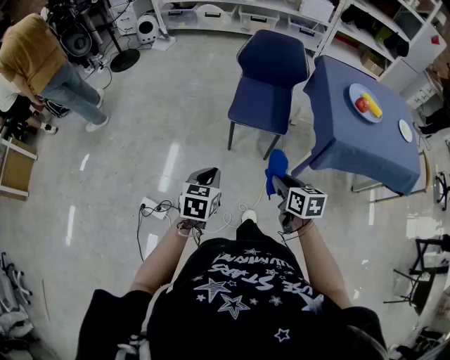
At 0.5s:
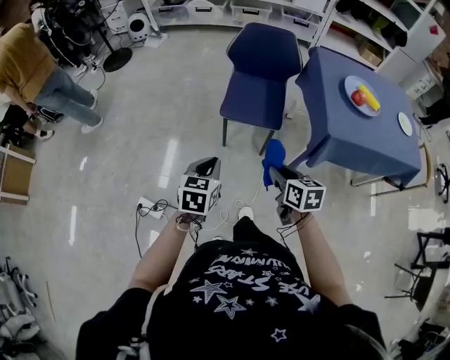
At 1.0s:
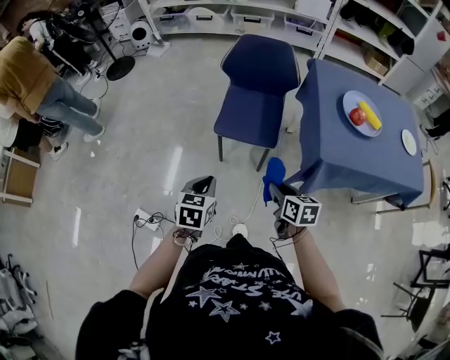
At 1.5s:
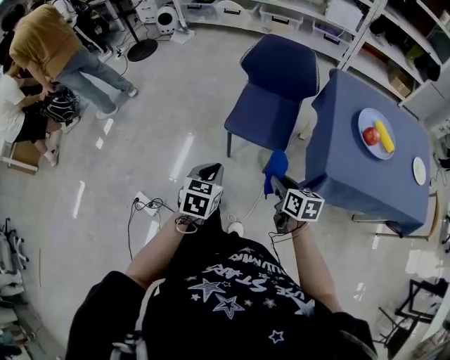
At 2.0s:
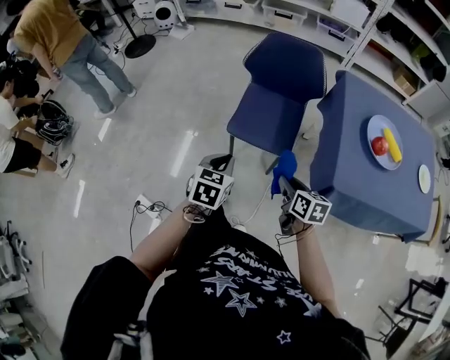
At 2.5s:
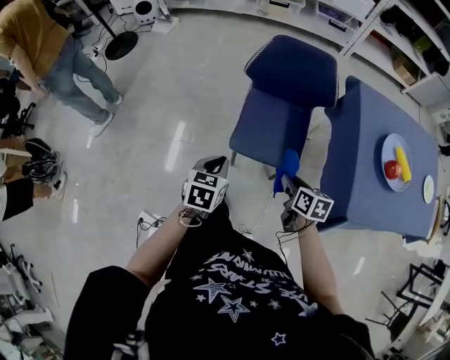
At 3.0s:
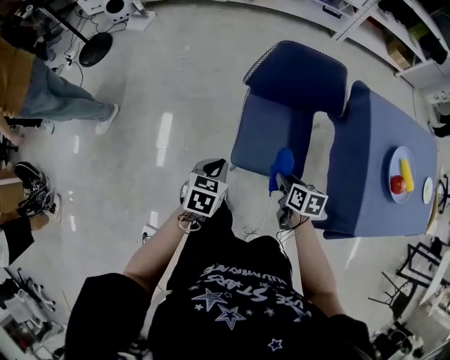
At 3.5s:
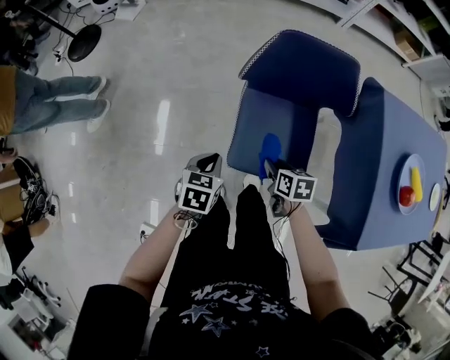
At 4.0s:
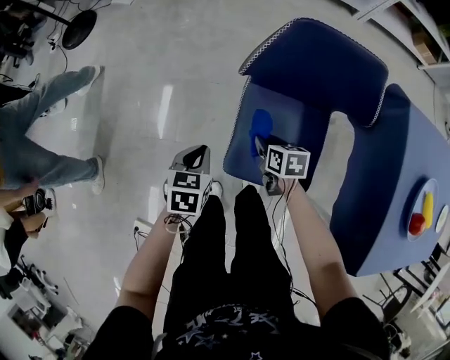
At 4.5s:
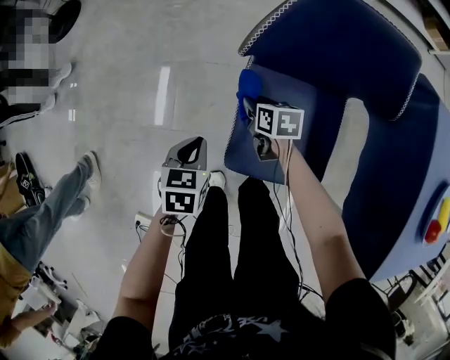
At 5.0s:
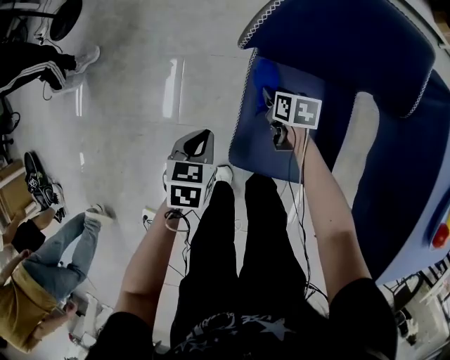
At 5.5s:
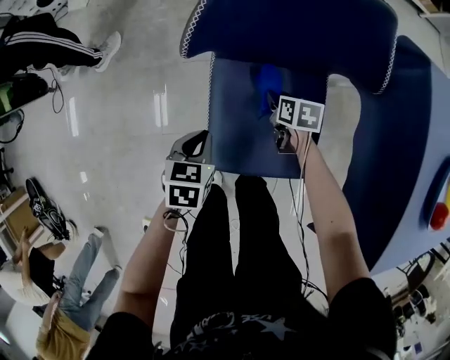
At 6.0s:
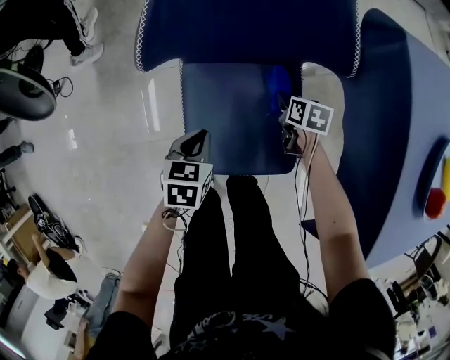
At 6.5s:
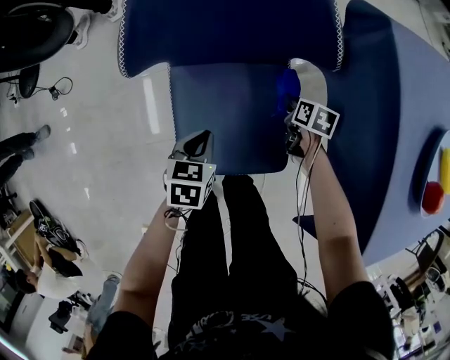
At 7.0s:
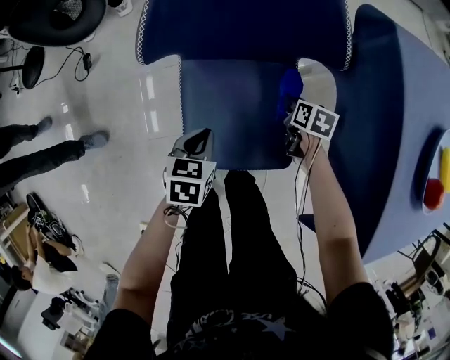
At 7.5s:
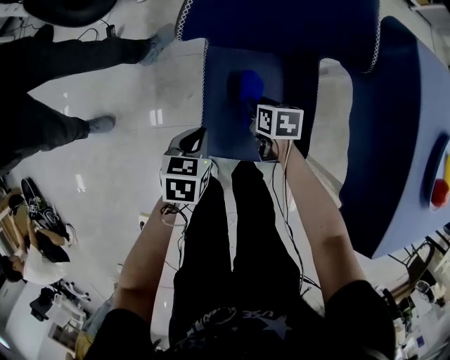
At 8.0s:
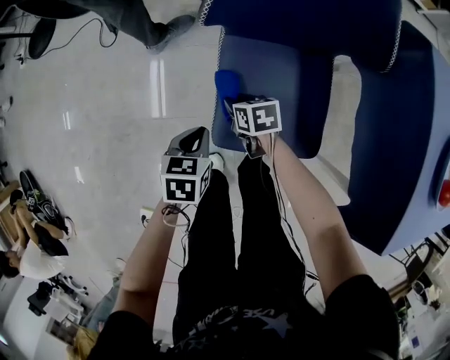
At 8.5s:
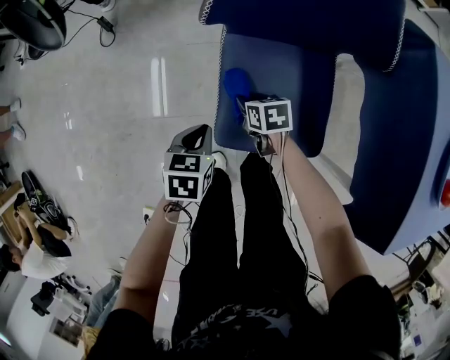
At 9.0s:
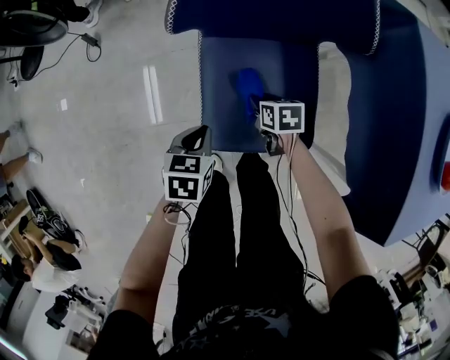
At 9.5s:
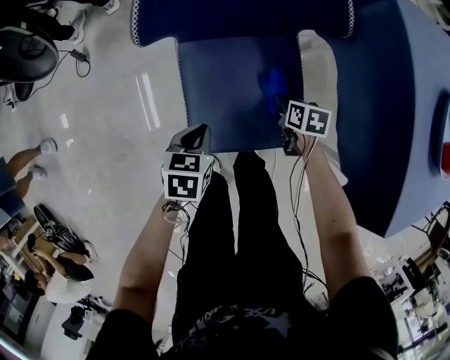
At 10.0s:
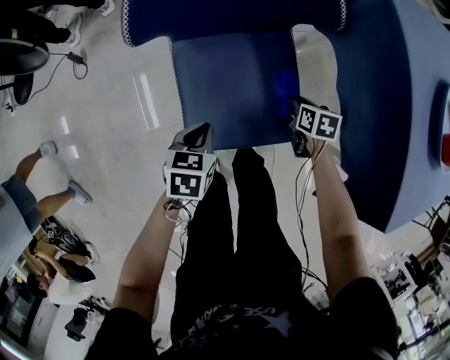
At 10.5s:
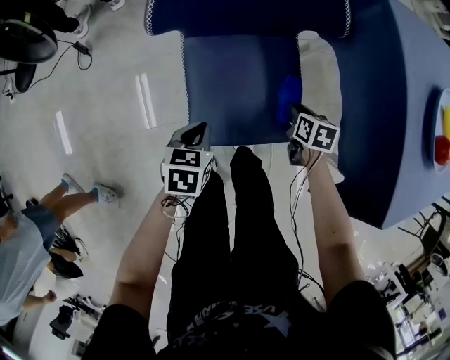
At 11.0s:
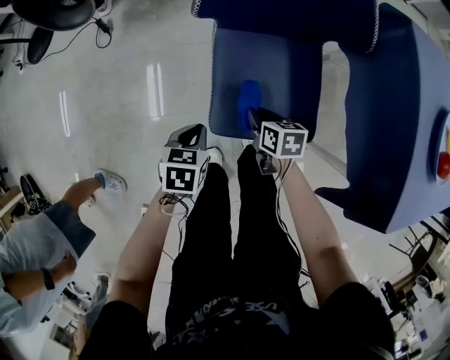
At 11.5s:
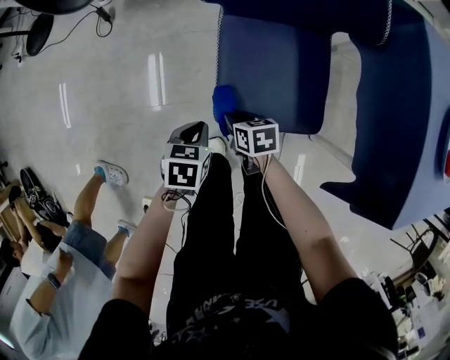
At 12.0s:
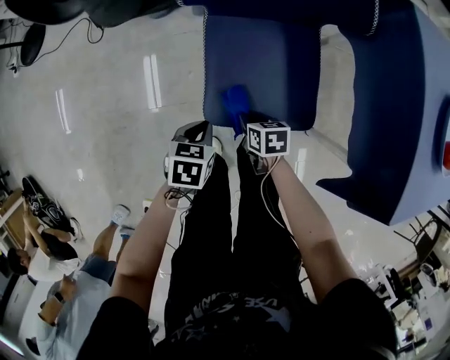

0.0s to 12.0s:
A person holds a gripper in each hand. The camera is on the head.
0.0s to 2.0s: The two grippers go about 25 cm forward and to the right.
2.0s to 4.0s: The two grippers go some 40 cm forward and downward.
4.0s to 6.0s: The grippers both shift to the right and downward by approximately 20 cm. The right gripper changes its angle by roughly 20 degrees.
6.0s to 8.0s: The right gripper heads to the left, covering approximately 25 cm, and changes its angle by about 30 degrees, while the left gripper heads to the left and backward, covering some 15 cm.
8.0s to 10.0s: The left gripper moves some 10 cm. Meanwhile the right gripper moves some 30 cm, and swivels some 30 degrees.
10.0s to 12.0s: The left gripper heads to the left and backward, covering about 10 cm; the right gripper shifts roughly 25 cm to the left and backward, and rotates about 20 degrees.

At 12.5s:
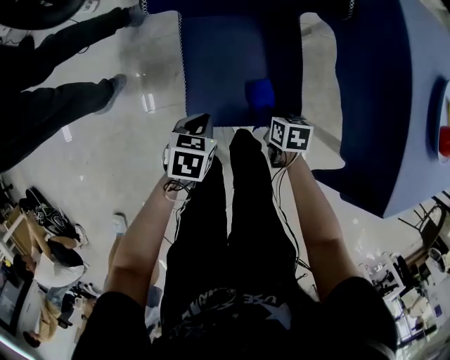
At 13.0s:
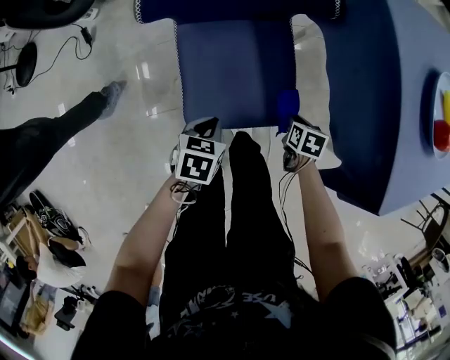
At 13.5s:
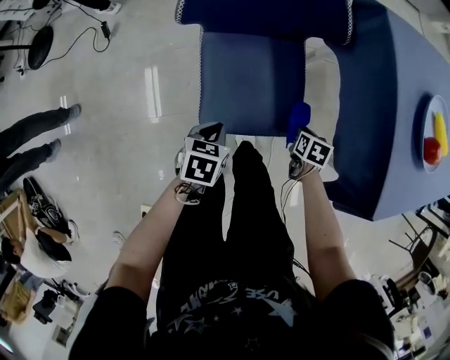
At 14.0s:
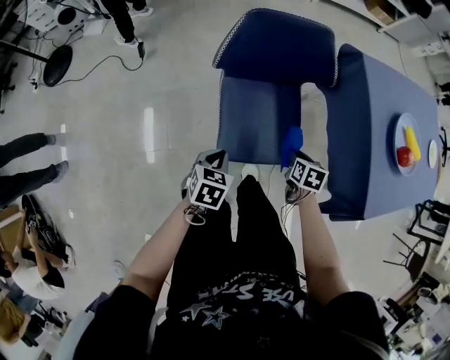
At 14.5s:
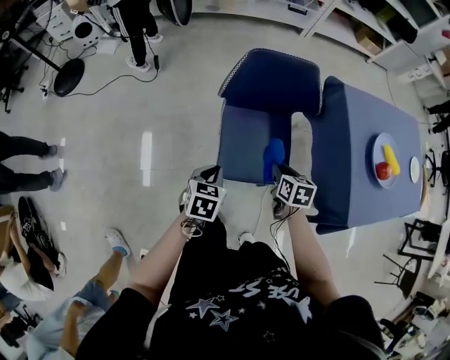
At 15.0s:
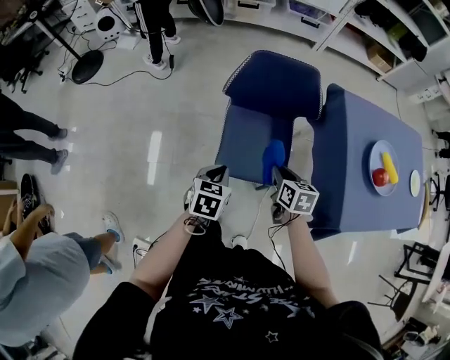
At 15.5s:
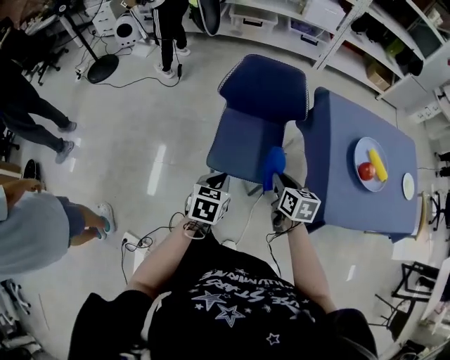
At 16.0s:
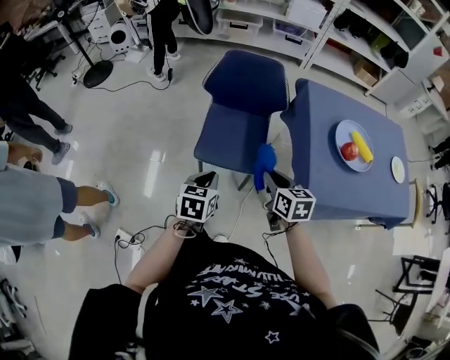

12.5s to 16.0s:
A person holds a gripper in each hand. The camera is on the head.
12.5s to 14.5s: Both grippers travel together upward, roughly 25 cm.
14.5s to 16.0s: The two grippers go about 25 cm backward, to the right and upward. The right gripper turns by approximately 30 degrees.

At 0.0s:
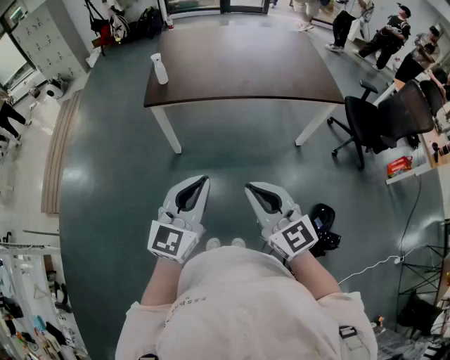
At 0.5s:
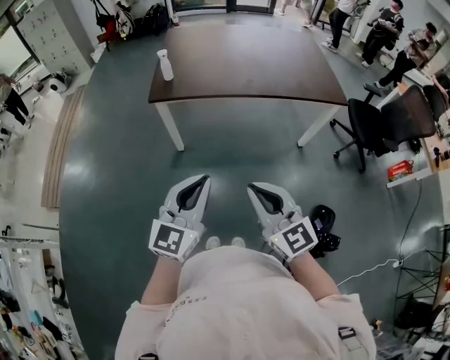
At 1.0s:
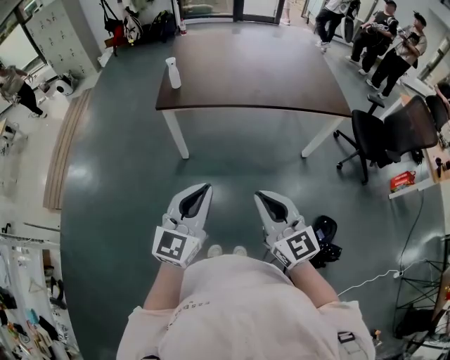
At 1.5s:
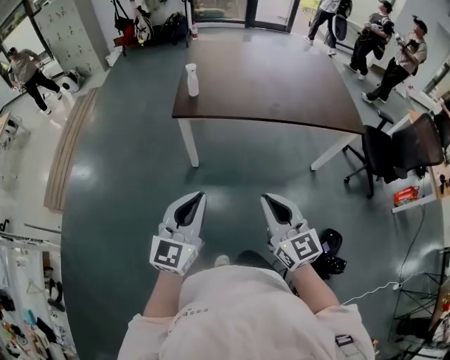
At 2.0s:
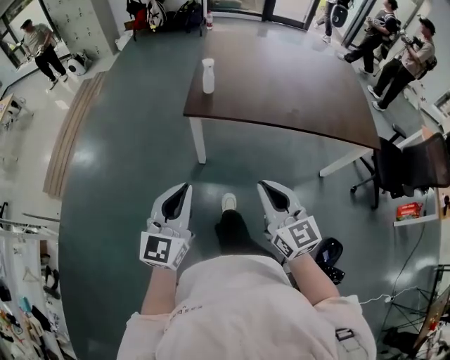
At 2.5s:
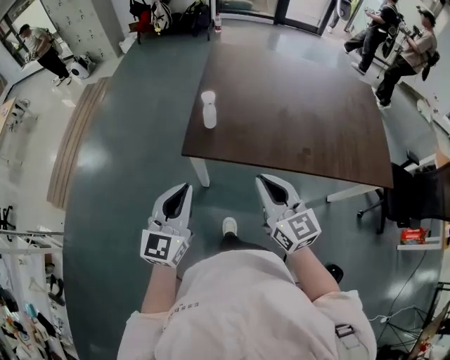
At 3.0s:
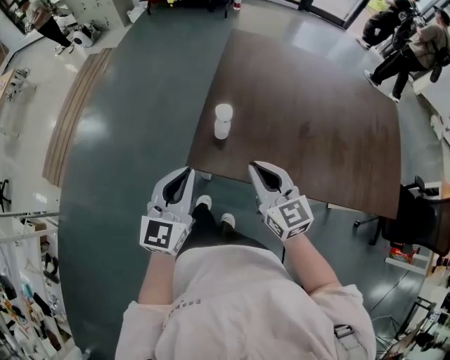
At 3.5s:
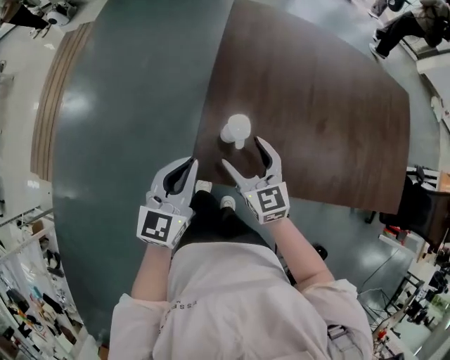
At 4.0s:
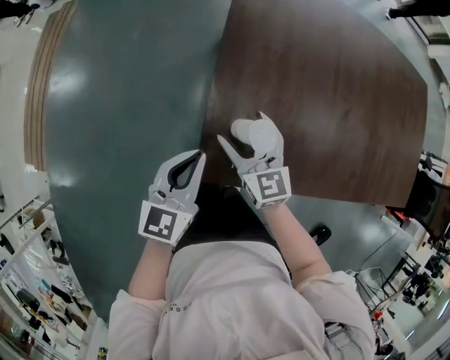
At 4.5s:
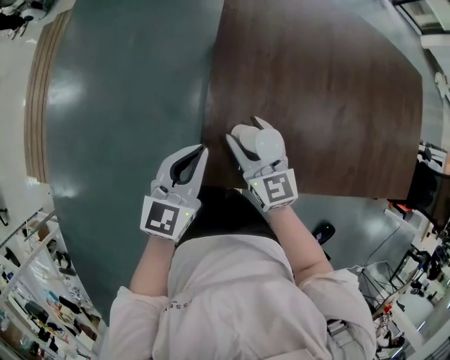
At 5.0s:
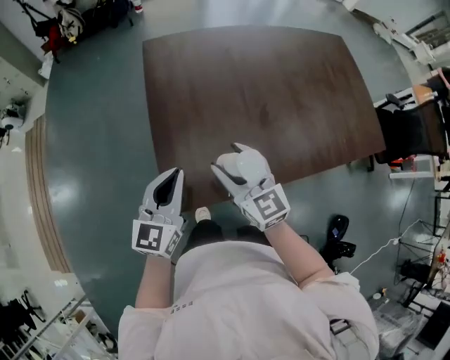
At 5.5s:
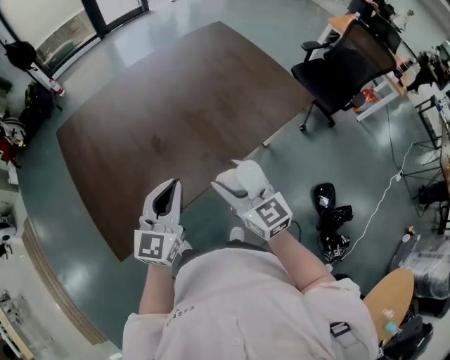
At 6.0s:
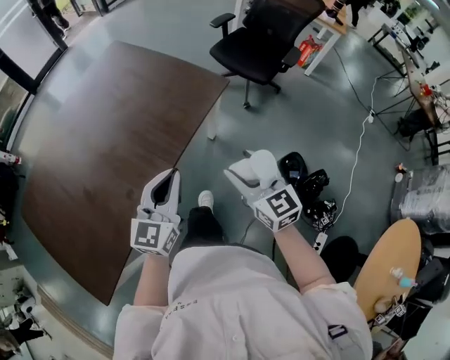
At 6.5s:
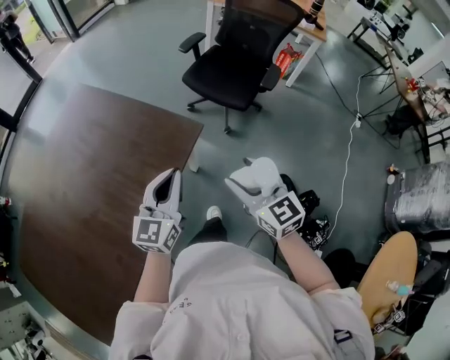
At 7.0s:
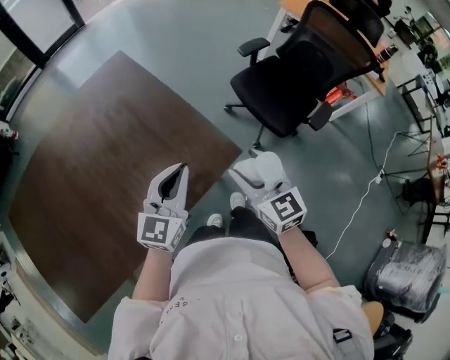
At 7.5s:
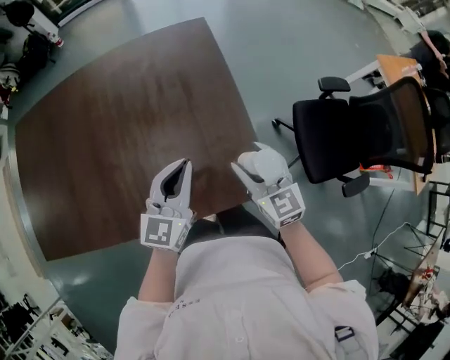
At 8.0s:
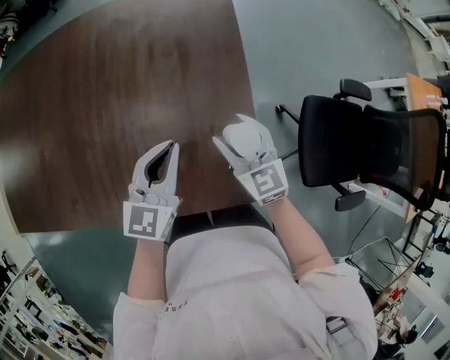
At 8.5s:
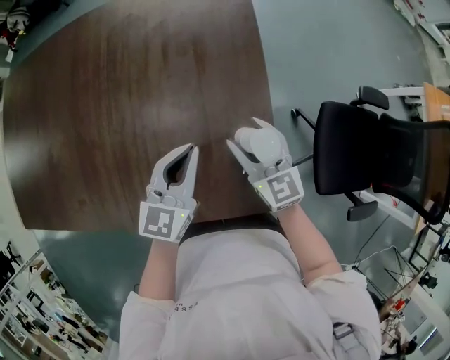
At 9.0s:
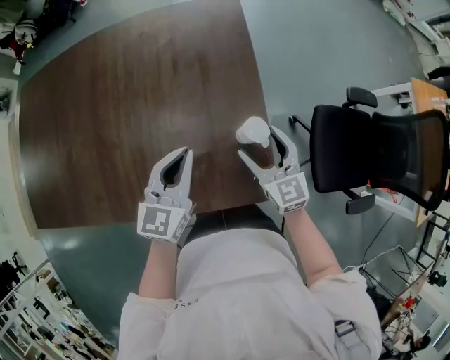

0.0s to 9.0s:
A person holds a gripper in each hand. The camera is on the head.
0.0s to 2.0s: The right gripper is displaced forward and to the left by about 20 cm, while the left gripper moves to the left and forward, roughly 25 cm.
2.0s to 4.5s: Both grippers are carried forward, approximately 50 cm. The left gripper turns by roughly 20 degrees, while the right gripper opens up.
4.5s to 7.0s: The two grippers travel together, about 1 m. The left gripper changes its angle by approximately 50 degrees; the right gripper changes its angle by some 50 degrees.
7.0s to 9.0s: The right gripper shifts by approximately 25 cm, and changes its angle by approximately 30 degrees. Meanwhile the left gripper moves about 15 cm, and rotates roughly 40 degrees.

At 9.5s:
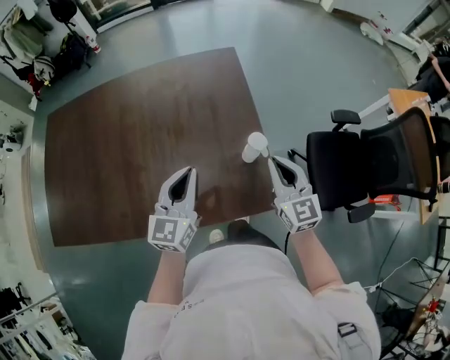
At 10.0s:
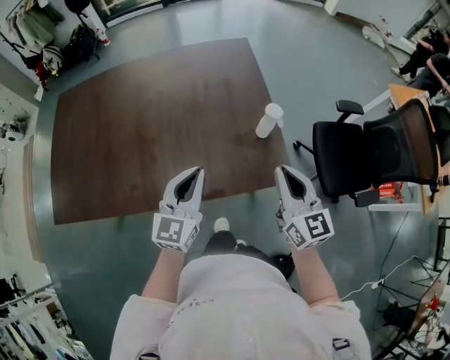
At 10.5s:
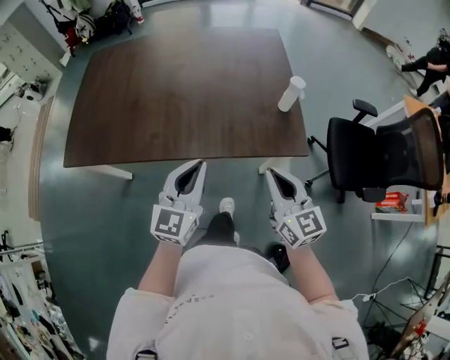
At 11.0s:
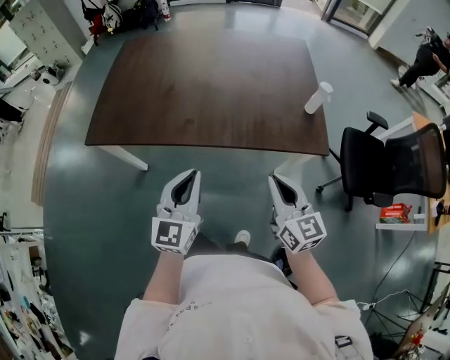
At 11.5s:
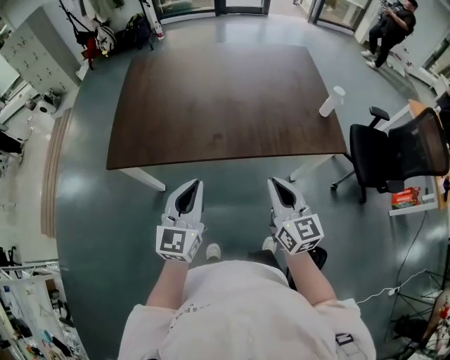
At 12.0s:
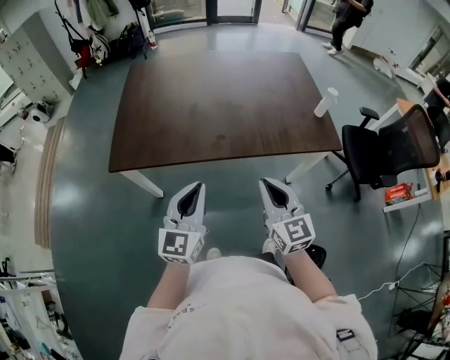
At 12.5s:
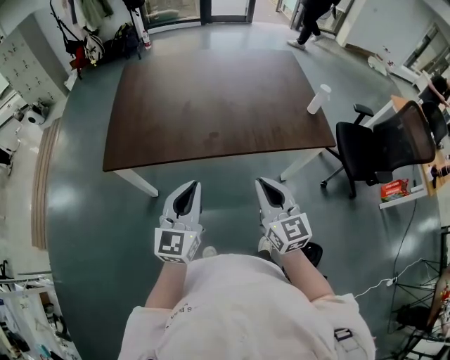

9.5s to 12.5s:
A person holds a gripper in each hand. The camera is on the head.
9.5s to 11.0s: Both grippers are carried backward and to the left, some 40 cm.
11.0s to 12.5s: The grippers both shift to the left by about 15 cm.
